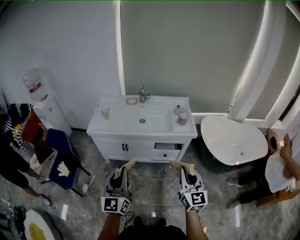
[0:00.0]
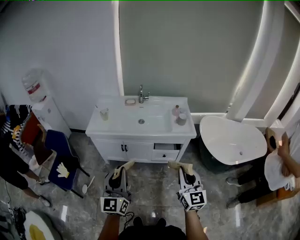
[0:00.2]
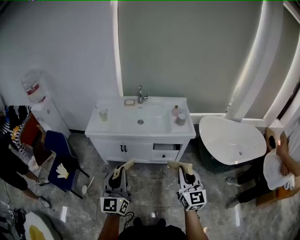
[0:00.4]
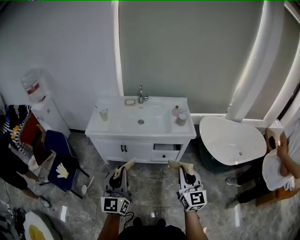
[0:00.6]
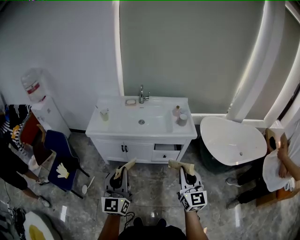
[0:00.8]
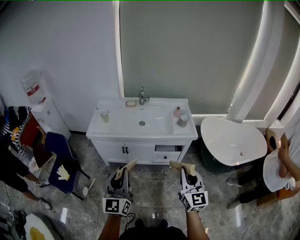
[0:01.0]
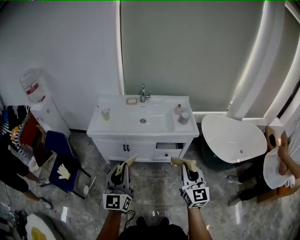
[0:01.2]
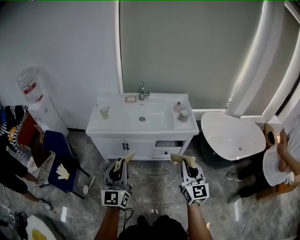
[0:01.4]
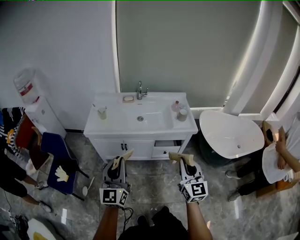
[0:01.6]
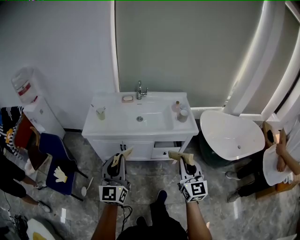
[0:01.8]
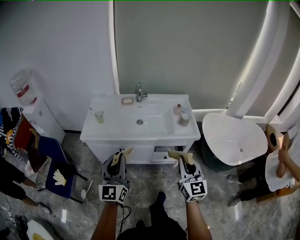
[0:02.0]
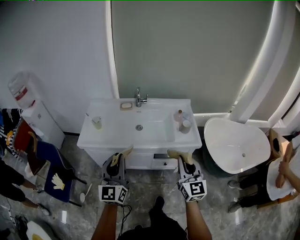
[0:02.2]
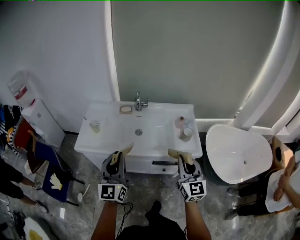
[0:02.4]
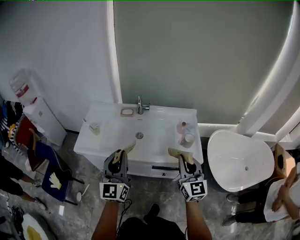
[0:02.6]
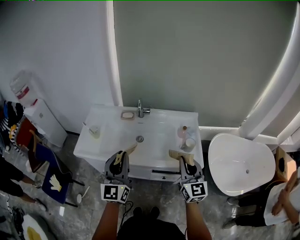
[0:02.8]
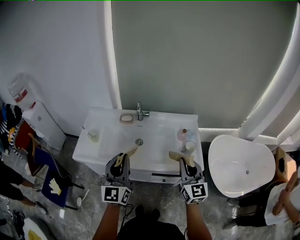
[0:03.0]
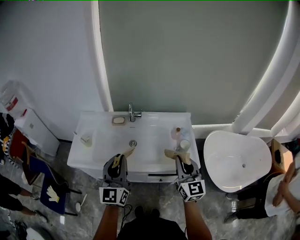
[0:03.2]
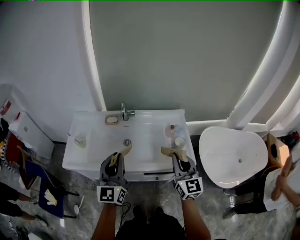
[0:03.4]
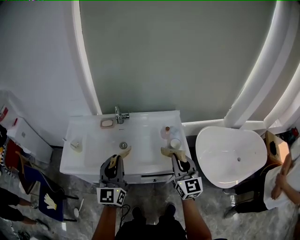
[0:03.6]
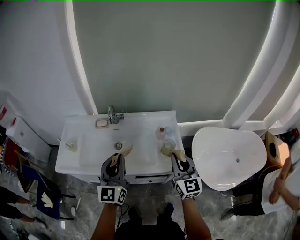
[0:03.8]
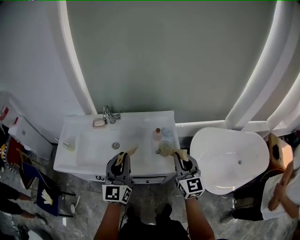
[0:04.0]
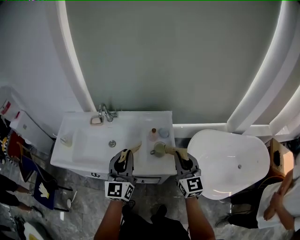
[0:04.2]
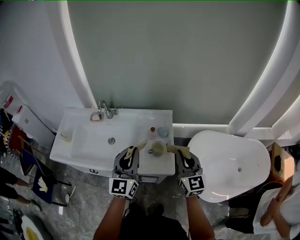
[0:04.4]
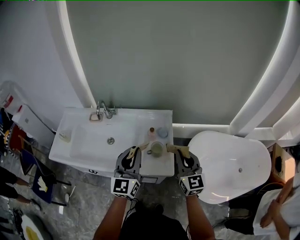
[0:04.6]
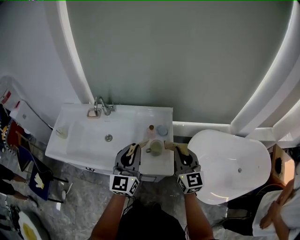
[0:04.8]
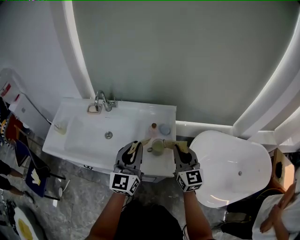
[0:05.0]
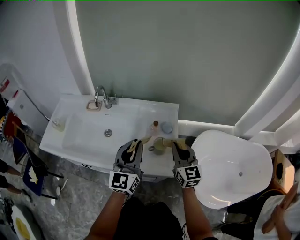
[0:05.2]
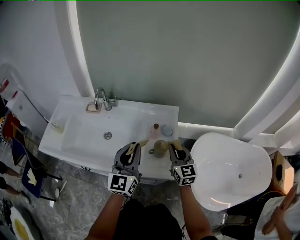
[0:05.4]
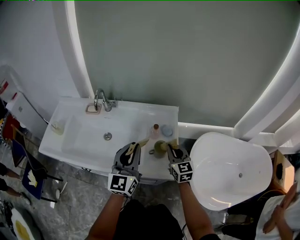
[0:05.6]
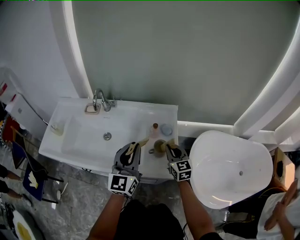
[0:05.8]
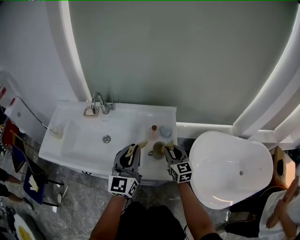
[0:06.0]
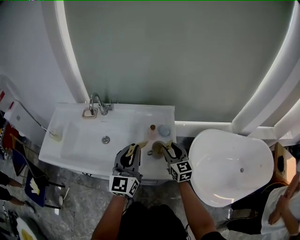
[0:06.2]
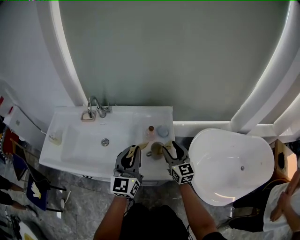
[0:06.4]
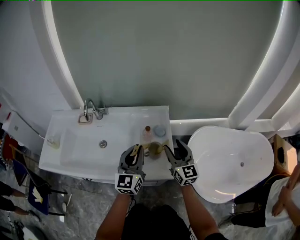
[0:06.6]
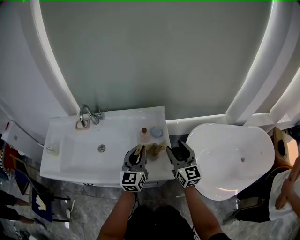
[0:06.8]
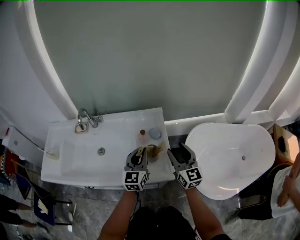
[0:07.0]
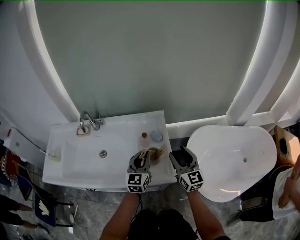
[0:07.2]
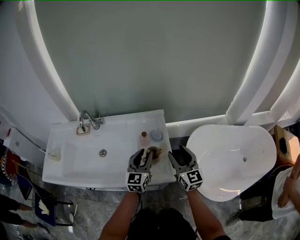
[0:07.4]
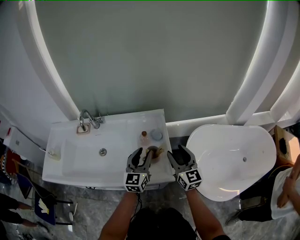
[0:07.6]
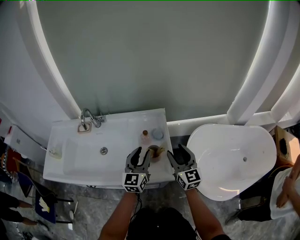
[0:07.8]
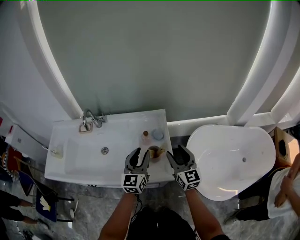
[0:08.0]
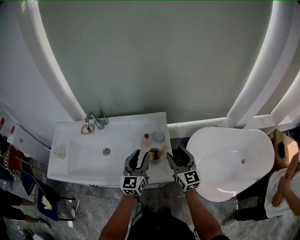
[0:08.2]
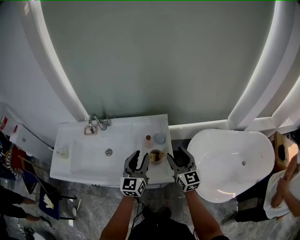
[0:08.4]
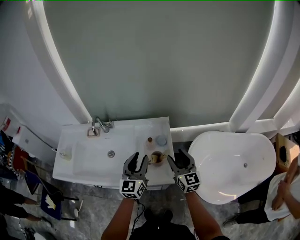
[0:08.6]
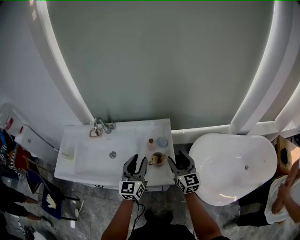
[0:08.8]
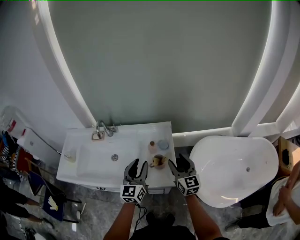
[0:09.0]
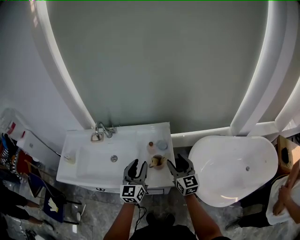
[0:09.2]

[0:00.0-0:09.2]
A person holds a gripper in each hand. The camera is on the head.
0:00.0 to 0:01.6: The left gripper moves forward and to the left, some 10 cm, while the right gripper is displaced to the left by approximately 5 cm.
0:01.6 to 0:03.0: Both grippers move forward, some 35 cm.
0:03.0 to 0:04.6: Both grippers travel together to the right, some 30 cm.
0:04.6 to 0:06.2: The left gripper moves downward and forward, approximately 10 cm. Meanwhile the right gripper heads downward and forward, covering about 20 cm, and opens its fingers.
0:06.2 to 0:07.6: The left gripper goes some 10 cm to the right and downward, and opens up, while the right gripper heads to the right and upward, covering some 10 cm.
0:07.6 to 0:09.2: The right gripper moves upward, roughly 10 cm. The left gripper shifts some 15 cm upward and backward.

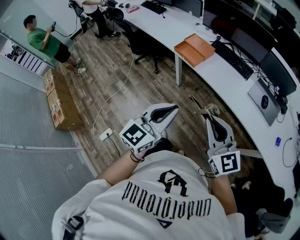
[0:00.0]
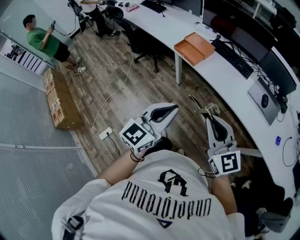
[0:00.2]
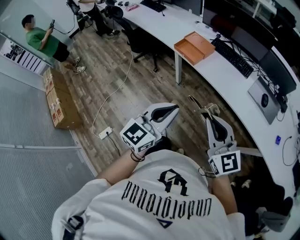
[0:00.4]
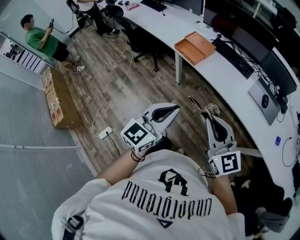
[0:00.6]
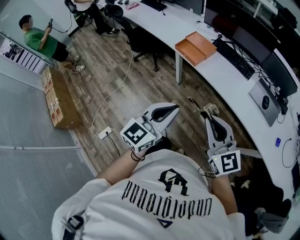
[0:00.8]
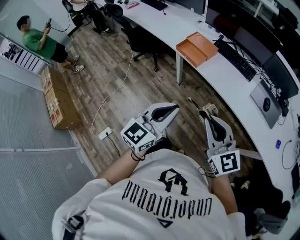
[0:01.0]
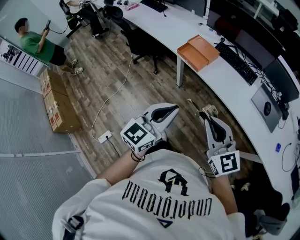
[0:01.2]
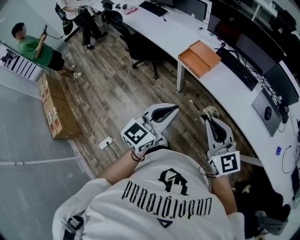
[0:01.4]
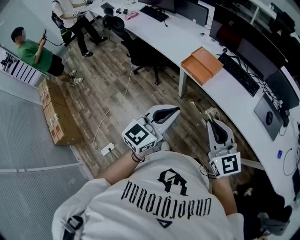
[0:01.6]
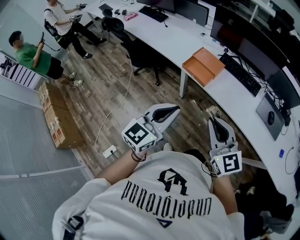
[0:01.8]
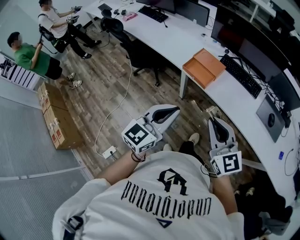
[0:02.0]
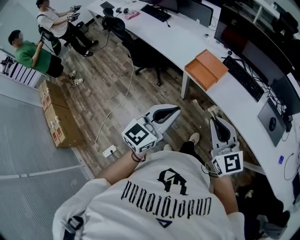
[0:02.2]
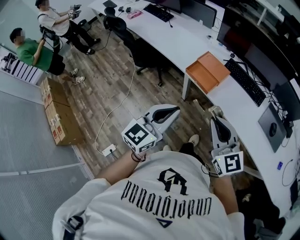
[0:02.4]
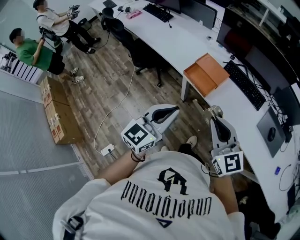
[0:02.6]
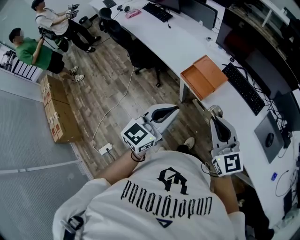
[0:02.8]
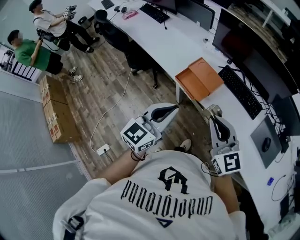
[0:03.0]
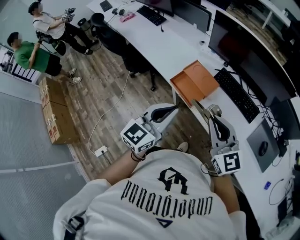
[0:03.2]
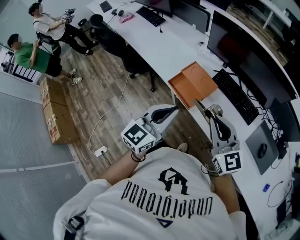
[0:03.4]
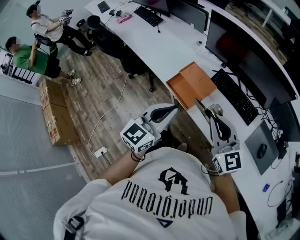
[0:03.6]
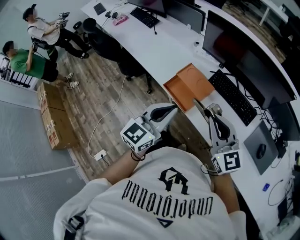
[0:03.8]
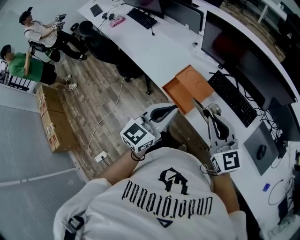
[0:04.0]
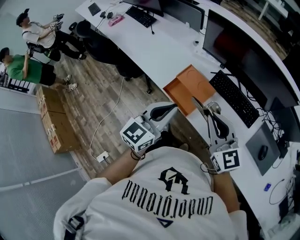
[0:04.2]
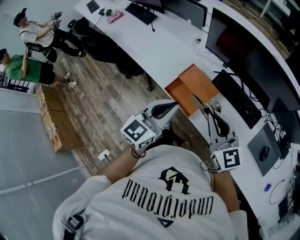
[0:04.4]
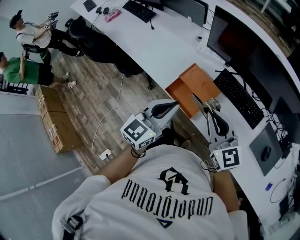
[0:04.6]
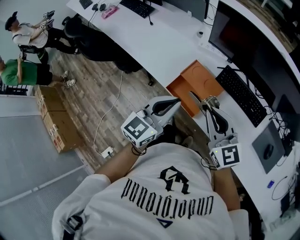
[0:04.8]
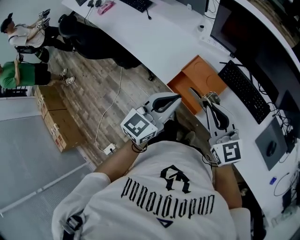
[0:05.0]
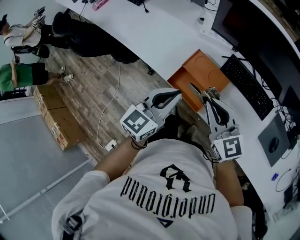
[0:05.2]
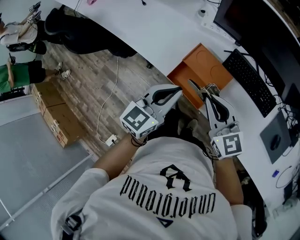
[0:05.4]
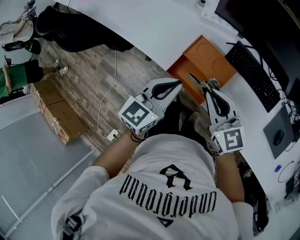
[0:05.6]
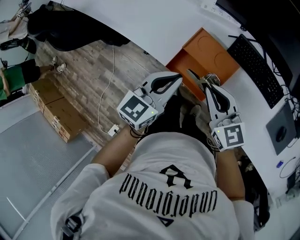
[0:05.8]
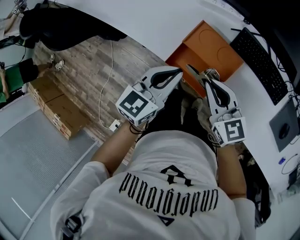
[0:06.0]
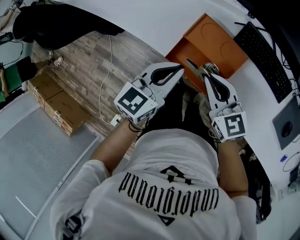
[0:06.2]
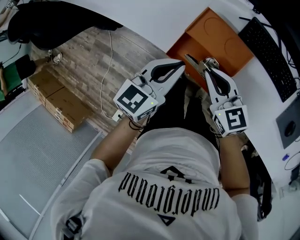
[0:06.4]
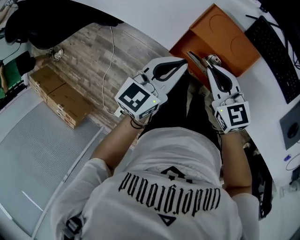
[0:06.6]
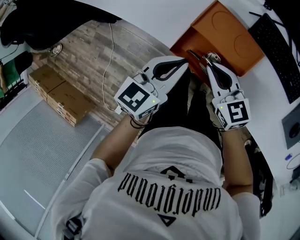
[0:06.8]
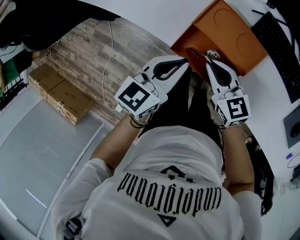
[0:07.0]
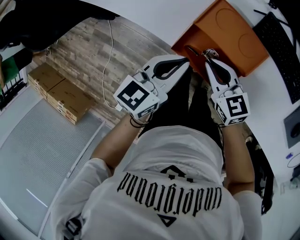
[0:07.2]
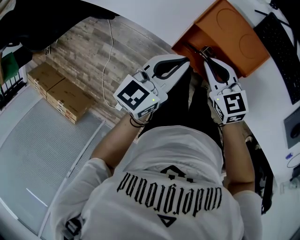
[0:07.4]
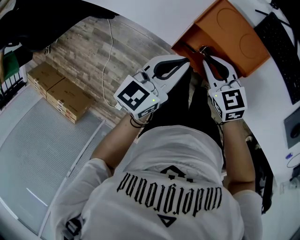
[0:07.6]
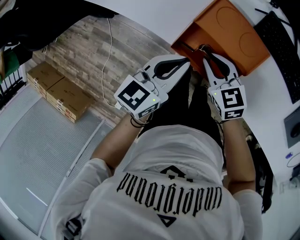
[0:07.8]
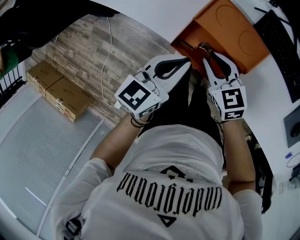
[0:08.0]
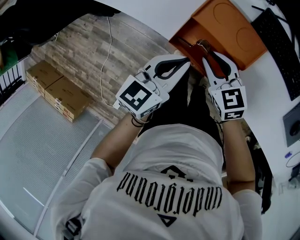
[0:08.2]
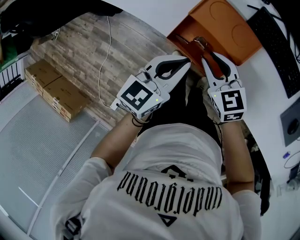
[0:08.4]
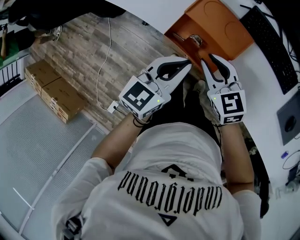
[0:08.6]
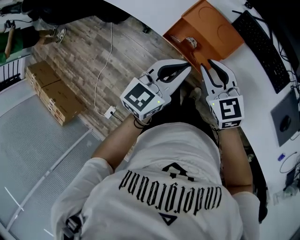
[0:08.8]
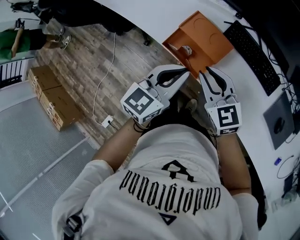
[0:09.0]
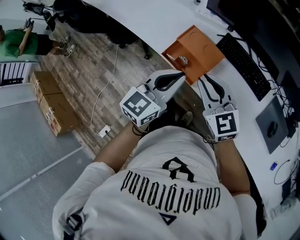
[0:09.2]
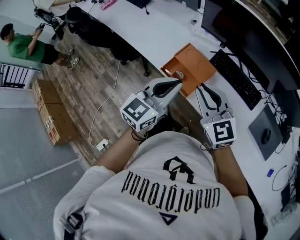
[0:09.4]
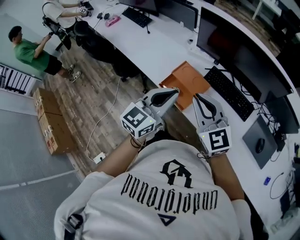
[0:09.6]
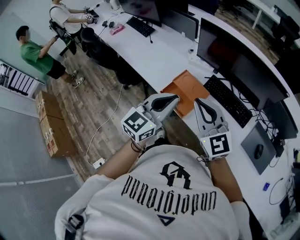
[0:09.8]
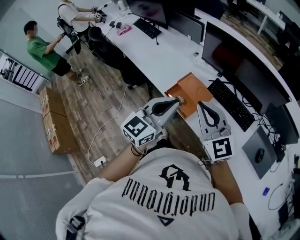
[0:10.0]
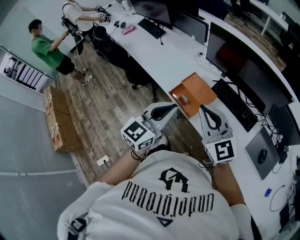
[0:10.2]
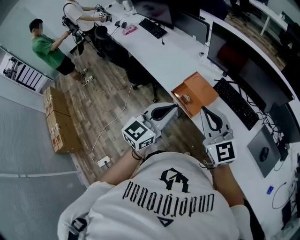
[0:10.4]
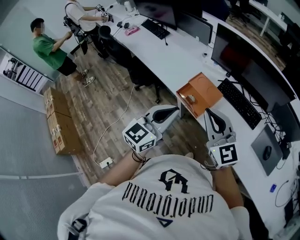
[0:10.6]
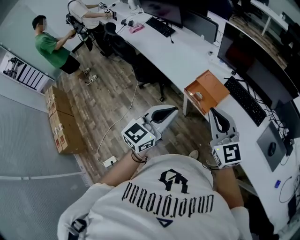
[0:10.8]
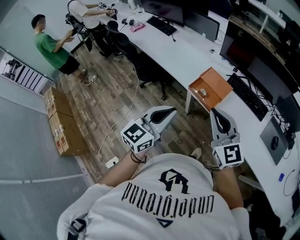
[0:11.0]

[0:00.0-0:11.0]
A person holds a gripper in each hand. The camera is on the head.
0:00.0 to 0:01.6: The two grippers go about 20 cm forward and to the left.
0:01.6 to 0:03.2: Both grippers travel together forward, approximately 25 cm.
0:03.2 to 0:04.8: The grippers both shift forward by about 15 cm.
0:04.8 to 0:06.2: The right gripper travels downward by about 20 cm, while the left gripper is displaced downward and forward by about 20 cm.
0:06.2 to 0:07.8: The right gripper heads downward, covering roughly 15 cm. Meanwhile the left gripper moves downward, roughly 5 cm.
0:07.8 to 0:09.4: The left gripper shifts about 30 cm upward, backward and to the right, and swivels roughly 30 degrees. The right gripper is displaced upward and backward by some 35 cm, and swivels some 30 degrees.
0:09.4 to 0:11.0: The right gripper shifts approximately 20 cm backward, to the left and upward, while the left gripper shifts about 25 cm backward and to the left.

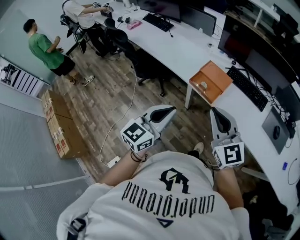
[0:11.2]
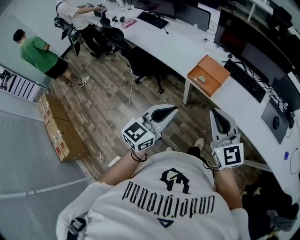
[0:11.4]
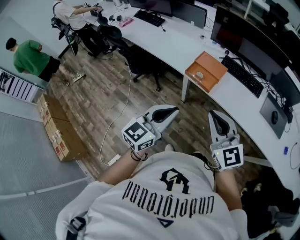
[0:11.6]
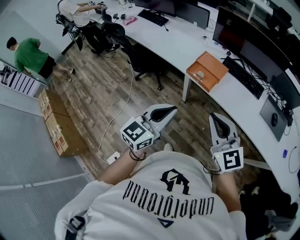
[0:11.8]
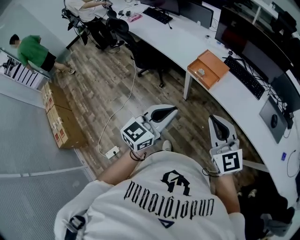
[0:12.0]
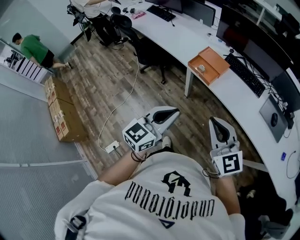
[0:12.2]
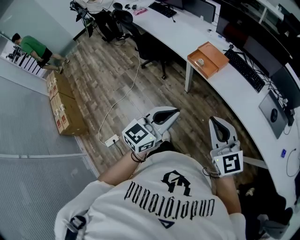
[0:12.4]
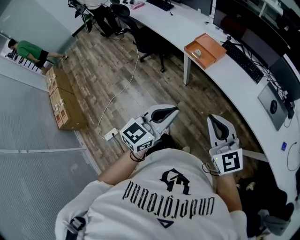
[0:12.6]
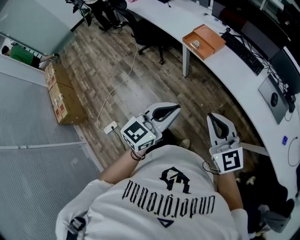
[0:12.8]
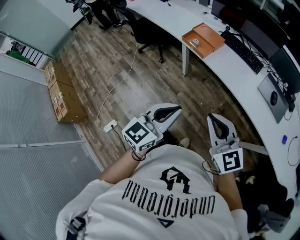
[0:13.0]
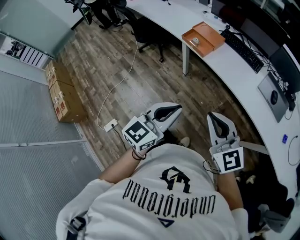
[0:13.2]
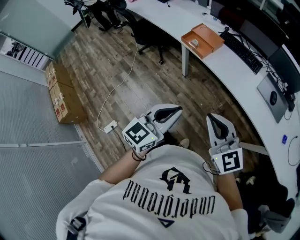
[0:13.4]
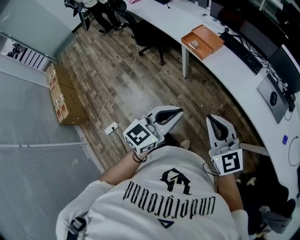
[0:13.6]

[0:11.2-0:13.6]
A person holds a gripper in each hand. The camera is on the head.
0:11.2 to 0:12.4: The two grippers go about 20 cm backward and to the right.
0:12.4 to 0:13.6: The left gripper heads to the right and backward, covering roughly 10 cm. Meanwhile the right gripper heads backward and to the right, covering some 10 cm.

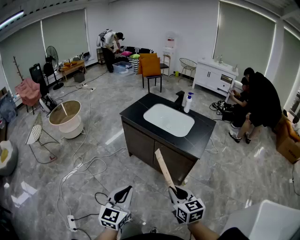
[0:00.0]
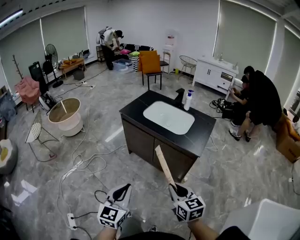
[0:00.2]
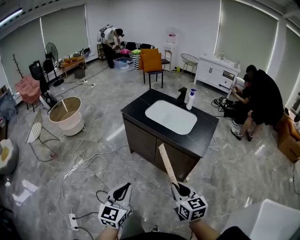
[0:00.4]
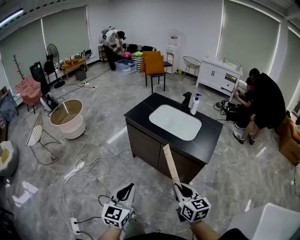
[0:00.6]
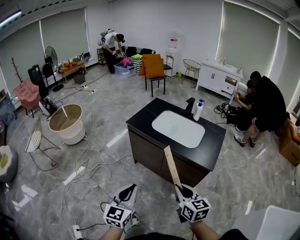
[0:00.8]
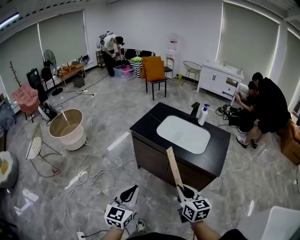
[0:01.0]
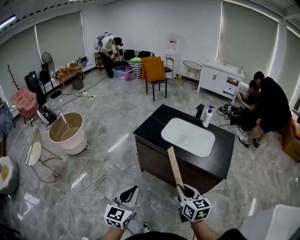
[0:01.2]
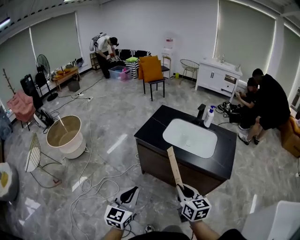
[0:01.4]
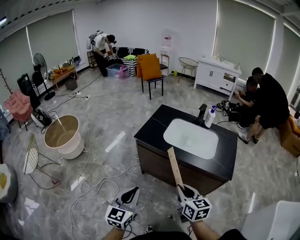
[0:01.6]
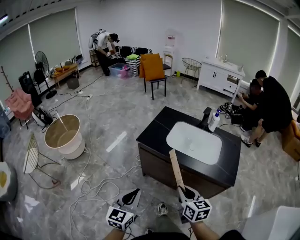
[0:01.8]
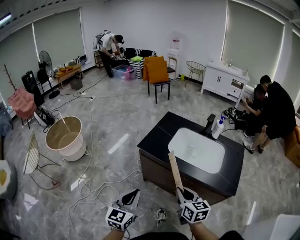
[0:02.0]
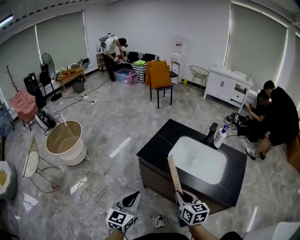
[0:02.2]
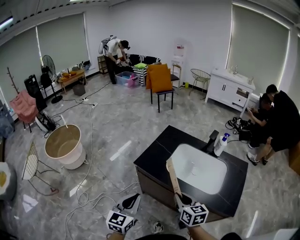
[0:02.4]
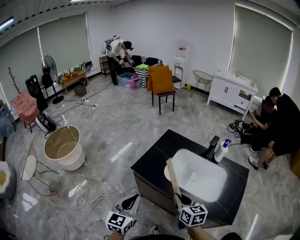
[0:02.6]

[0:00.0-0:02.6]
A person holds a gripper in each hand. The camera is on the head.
0:00.0 to 0:01.2: The grippers both shift forward and to the left by approximately 25 cm.
0:01.2 to 0:02.6: The grippers both shift forward by approximately 30 cm.
